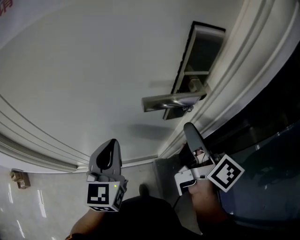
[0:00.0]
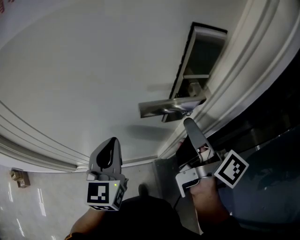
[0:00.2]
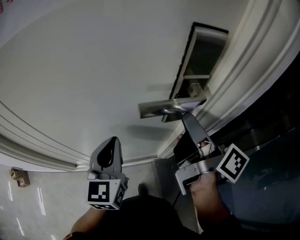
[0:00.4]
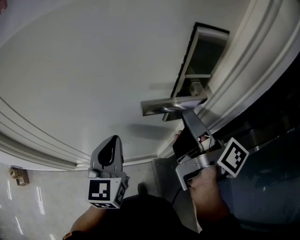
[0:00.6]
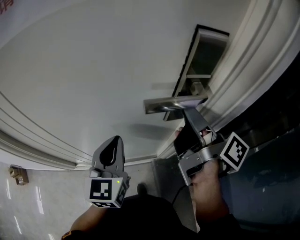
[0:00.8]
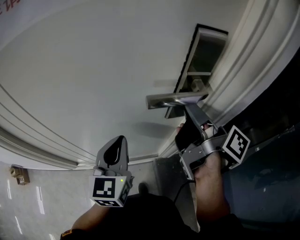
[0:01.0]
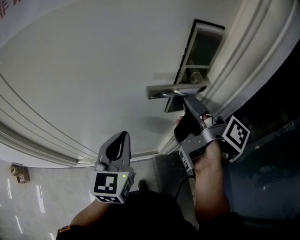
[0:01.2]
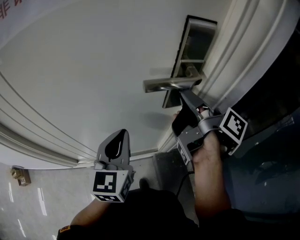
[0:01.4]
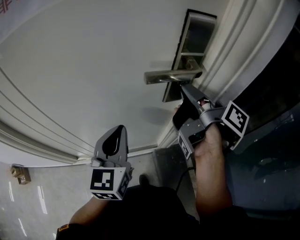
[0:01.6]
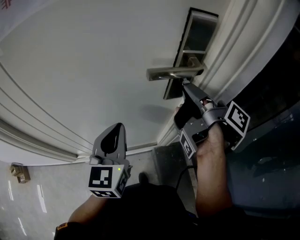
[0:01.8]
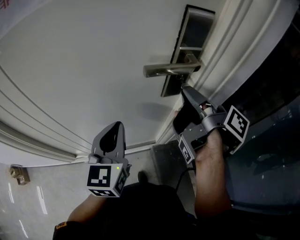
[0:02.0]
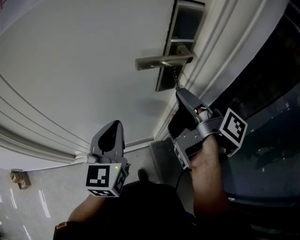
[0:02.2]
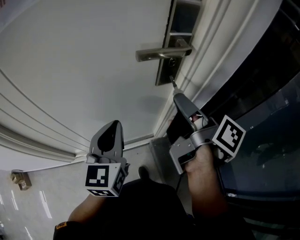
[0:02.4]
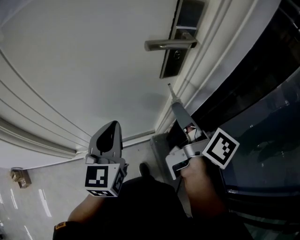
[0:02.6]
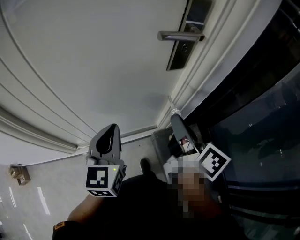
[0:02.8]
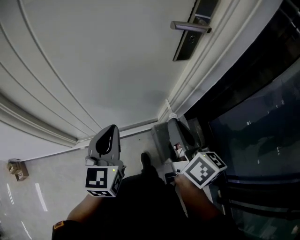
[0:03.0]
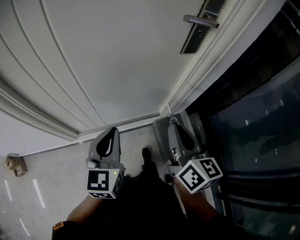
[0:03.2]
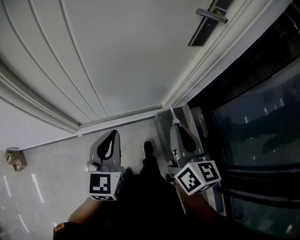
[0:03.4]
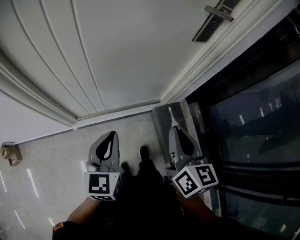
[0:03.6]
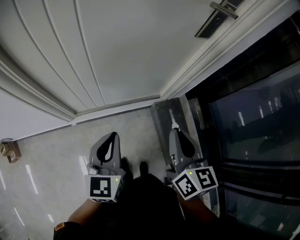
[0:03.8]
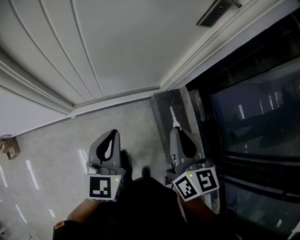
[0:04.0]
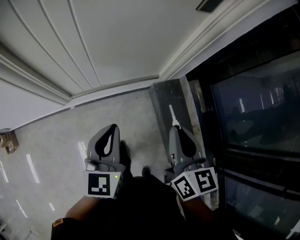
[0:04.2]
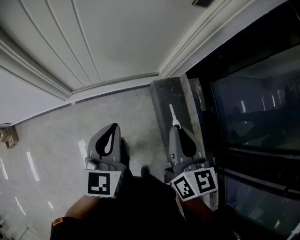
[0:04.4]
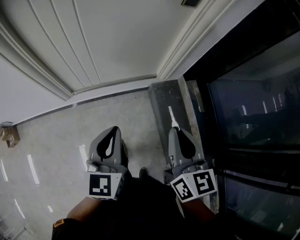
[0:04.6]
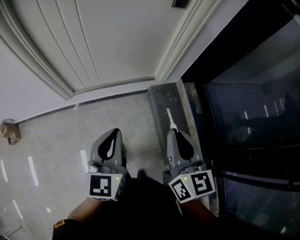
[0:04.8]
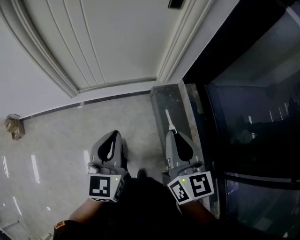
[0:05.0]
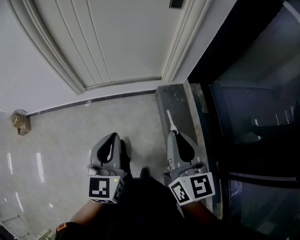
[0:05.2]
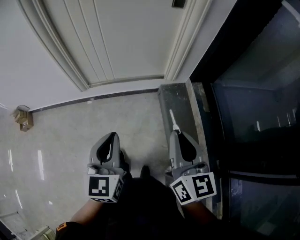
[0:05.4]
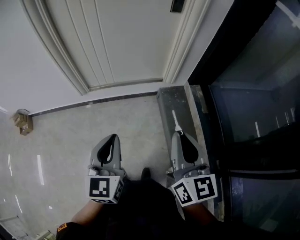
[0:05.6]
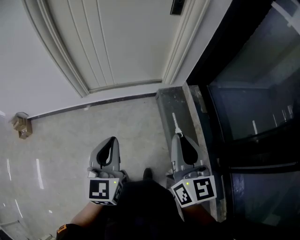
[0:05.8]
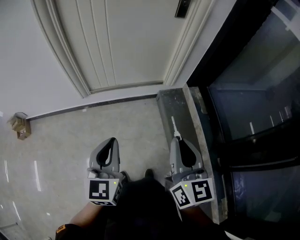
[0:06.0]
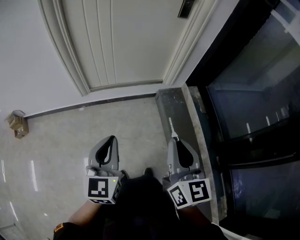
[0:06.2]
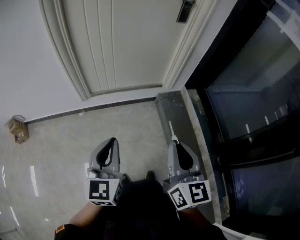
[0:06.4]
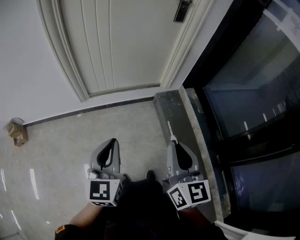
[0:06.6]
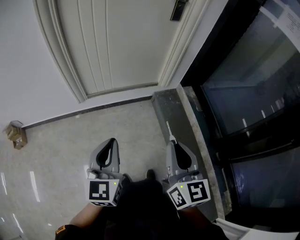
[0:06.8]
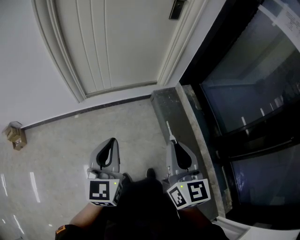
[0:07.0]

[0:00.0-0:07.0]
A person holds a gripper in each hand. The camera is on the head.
0:00.0 to 0:01.4: The right gripper rotates about 30 degrees.
0:01.4 to 0:02.8: The right gripper shifts some 20 cm backward and downward, and changes its angle by roughly 30 degrees; the left gripper goes roughly 10 cm backward and to the left.
0:02.8 to 0:04.2: The grippers both shift backward and downward by about 25 cm. The right gripper turns by some 40 degrees.
0:04.2 to 0:05.6: The two grippers go approximately 30 cm backward.
0:05.6 to 0:07.0: The left gripper heads to the left, covering some 10 cm; the right gripper moves to the left and backward, about 15 cm.

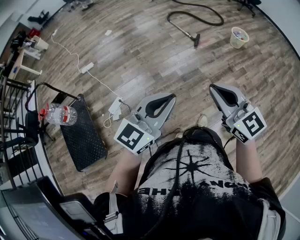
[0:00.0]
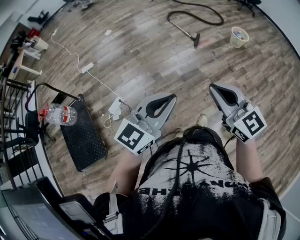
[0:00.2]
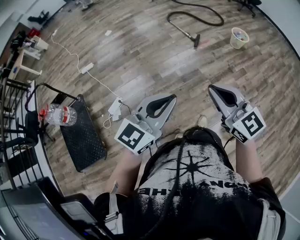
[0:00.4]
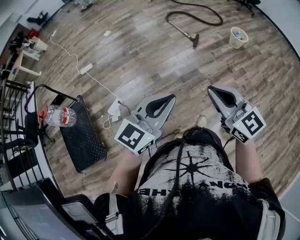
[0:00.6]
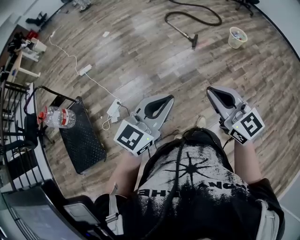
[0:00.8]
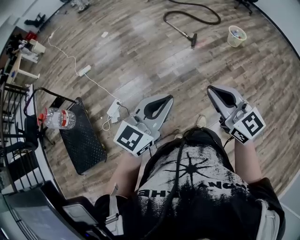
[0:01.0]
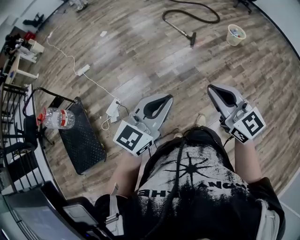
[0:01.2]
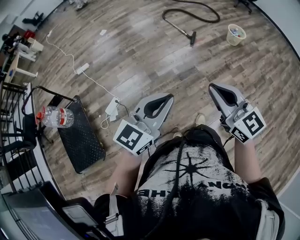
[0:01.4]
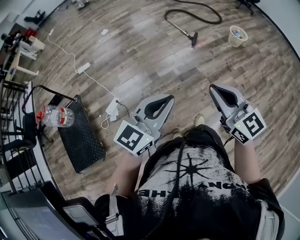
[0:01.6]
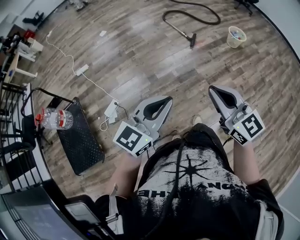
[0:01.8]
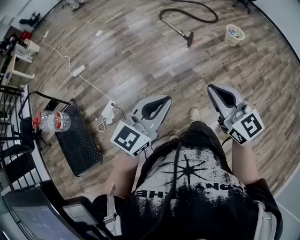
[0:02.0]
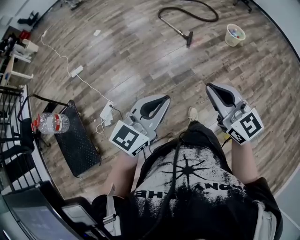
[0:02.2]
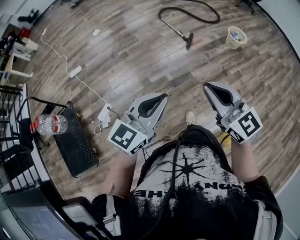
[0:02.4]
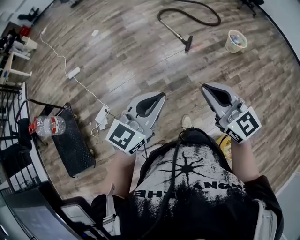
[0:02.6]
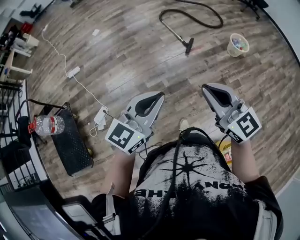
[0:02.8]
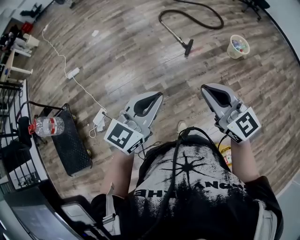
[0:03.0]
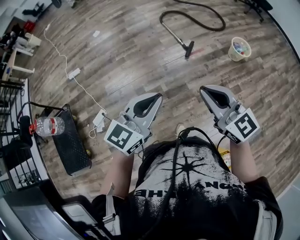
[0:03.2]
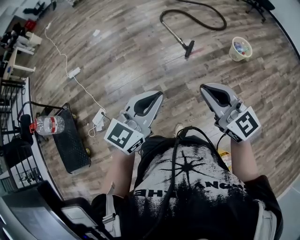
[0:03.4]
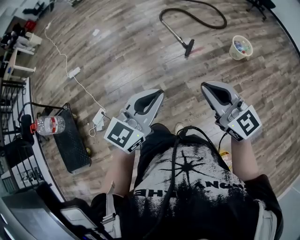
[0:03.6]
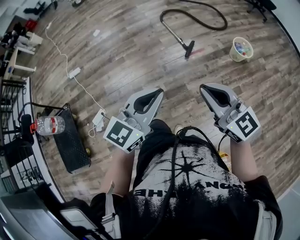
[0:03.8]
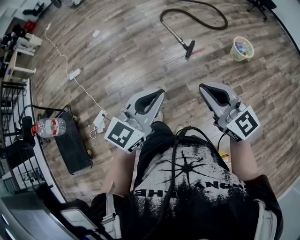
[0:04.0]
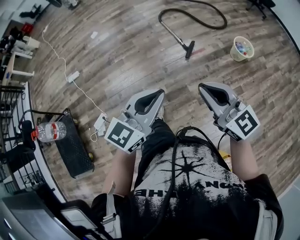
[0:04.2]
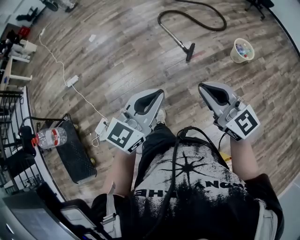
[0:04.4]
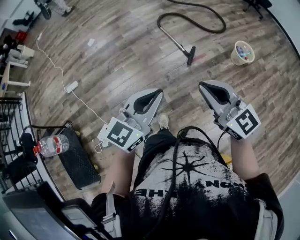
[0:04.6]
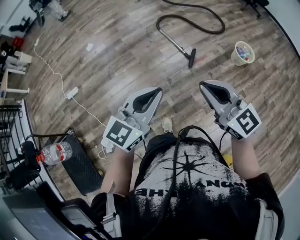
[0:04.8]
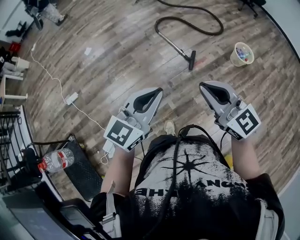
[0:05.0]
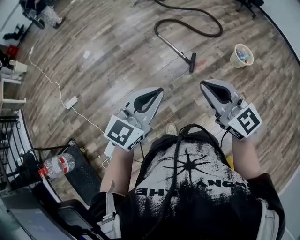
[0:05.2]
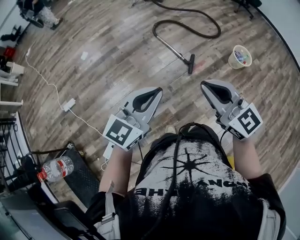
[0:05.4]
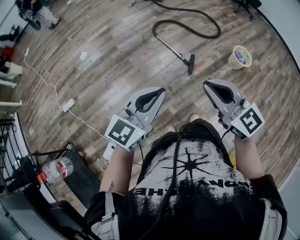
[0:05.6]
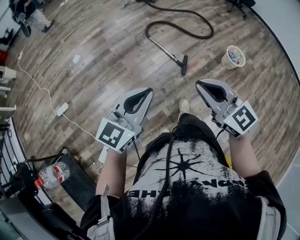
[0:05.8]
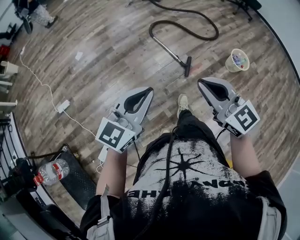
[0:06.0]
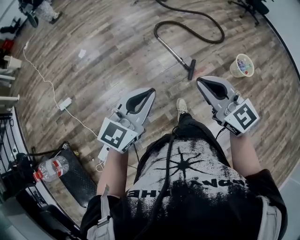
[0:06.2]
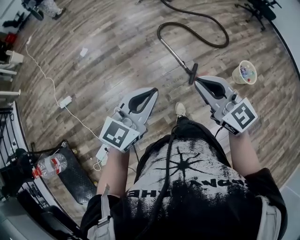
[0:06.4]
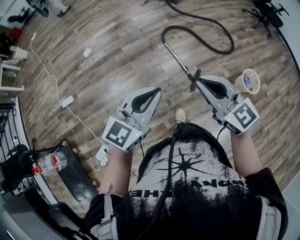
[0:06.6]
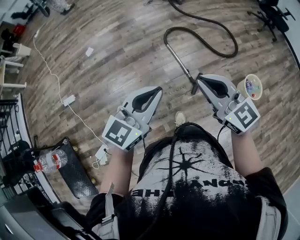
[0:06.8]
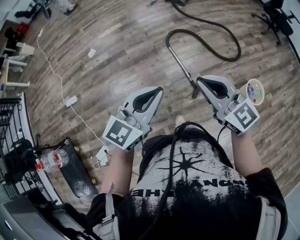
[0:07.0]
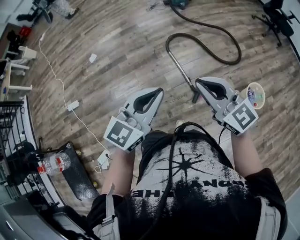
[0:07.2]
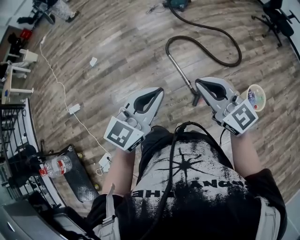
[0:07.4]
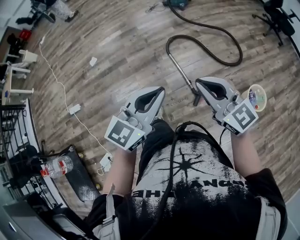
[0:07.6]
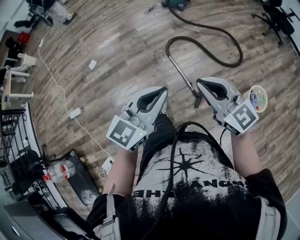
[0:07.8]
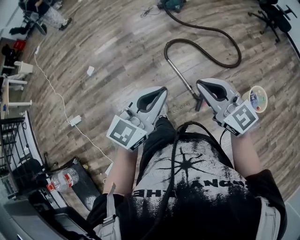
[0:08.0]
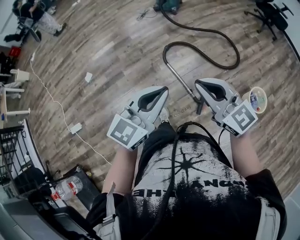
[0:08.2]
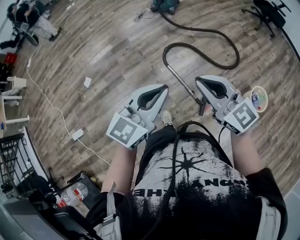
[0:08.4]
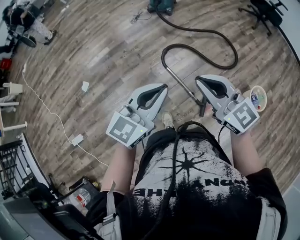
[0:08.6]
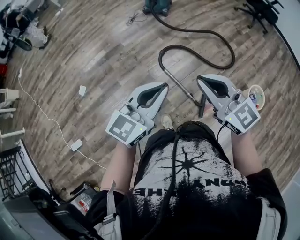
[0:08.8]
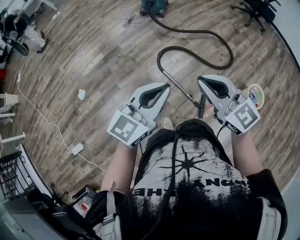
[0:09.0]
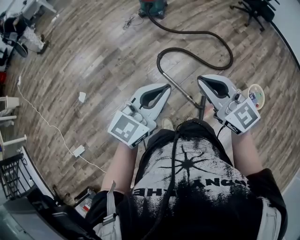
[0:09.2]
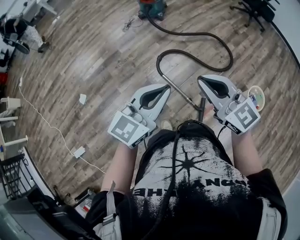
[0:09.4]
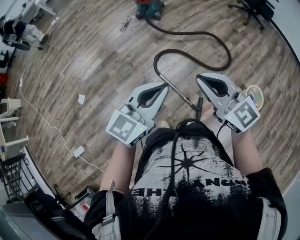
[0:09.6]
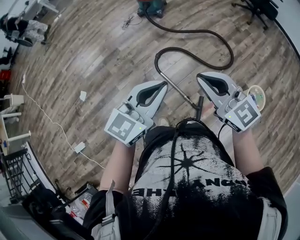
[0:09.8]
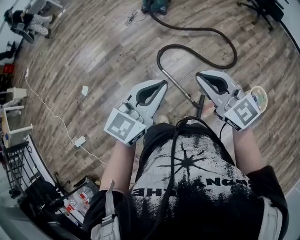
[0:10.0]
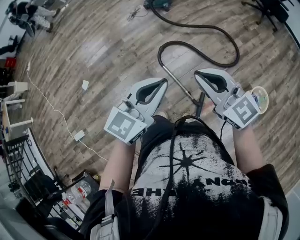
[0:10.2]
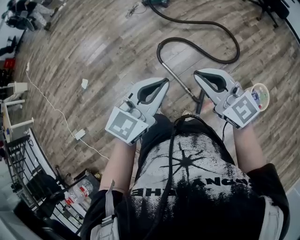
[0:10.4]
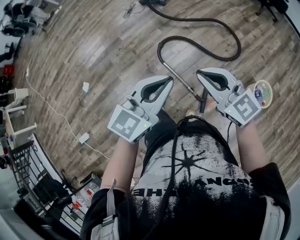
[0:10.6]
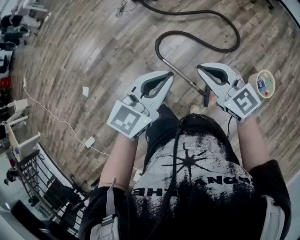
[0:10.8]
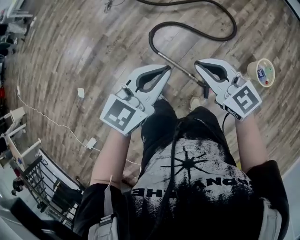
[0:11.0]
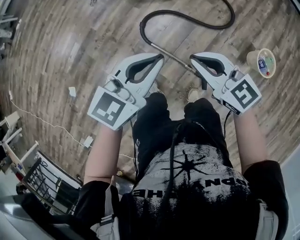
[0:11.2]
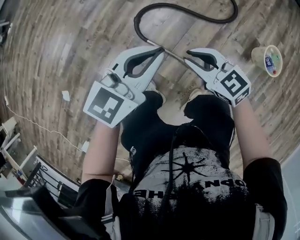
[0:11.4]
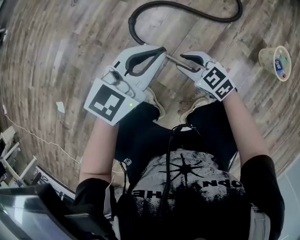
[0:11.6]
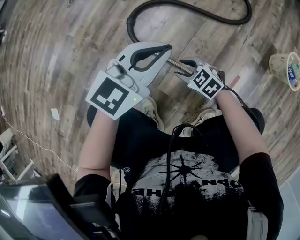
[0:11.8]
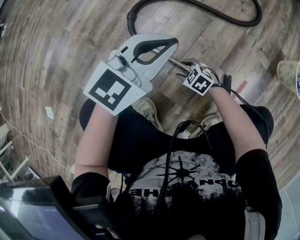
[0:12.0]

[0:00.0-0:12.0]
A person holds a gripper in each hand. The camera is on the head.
0:00.0 to 0:01.6: There are only small adjustments of the grippers.
0:01.6 to 0:03.0: The two grippers go roughly 30 cm forward and to the right.
0:03.0 to 0:04.4: The two grippers go about 15 cm forward.
0:04.4 to 0:06.0: Both grippers travel together forward and to the left, roughly 25 cm.
0:06.0 to 0:07.6: Both grippers move forward and to the right, roughly 35 cm.
0:07.6 to 0:09.0: The grippers both shift forward and to the left by some 30 cm.
0:09.0 to 0:10.4: The grippers both shift to the right by roughly 15 cm.
0:10.4 to 0:12.0: The left gripper shifts approximately 50 cm downward, and changes its angle by about 30 degrees. Meanwhile the right gripper travels downward by some 90 cm, points its fingers roughly 50 degrees further downward, and opens its fingers.

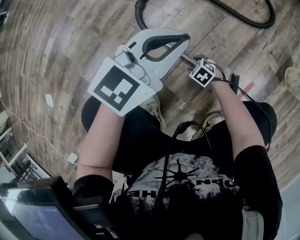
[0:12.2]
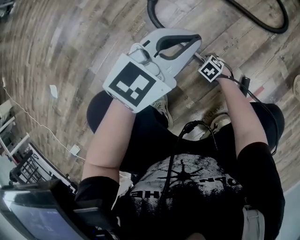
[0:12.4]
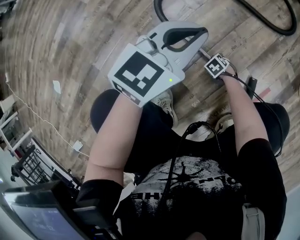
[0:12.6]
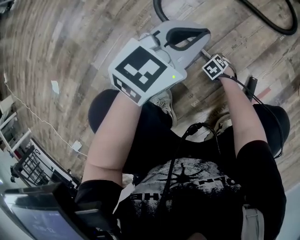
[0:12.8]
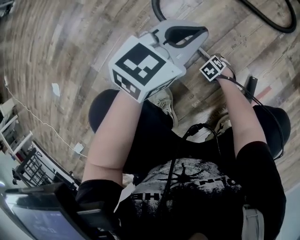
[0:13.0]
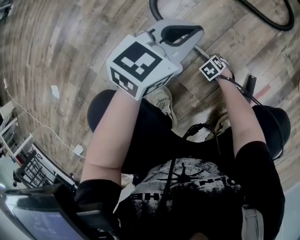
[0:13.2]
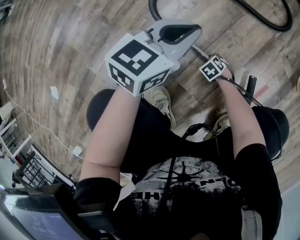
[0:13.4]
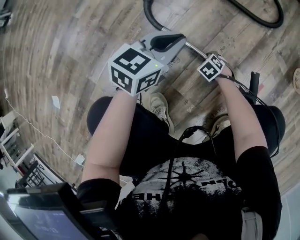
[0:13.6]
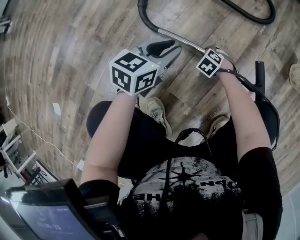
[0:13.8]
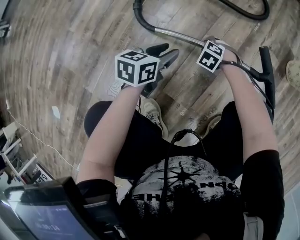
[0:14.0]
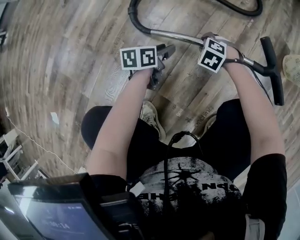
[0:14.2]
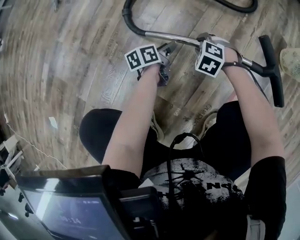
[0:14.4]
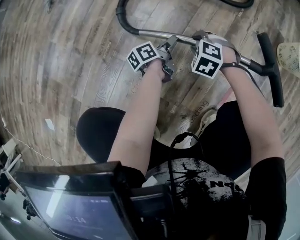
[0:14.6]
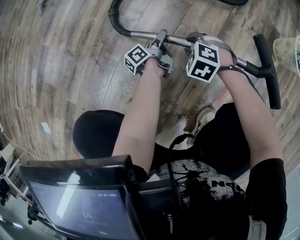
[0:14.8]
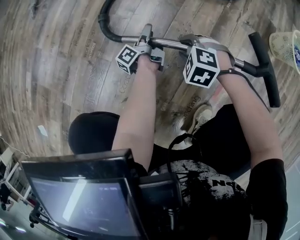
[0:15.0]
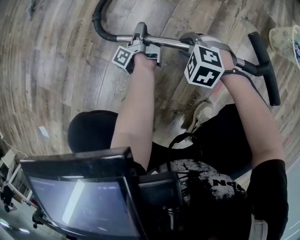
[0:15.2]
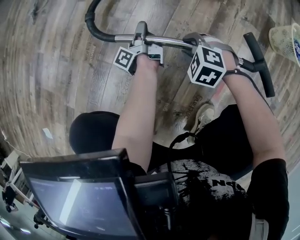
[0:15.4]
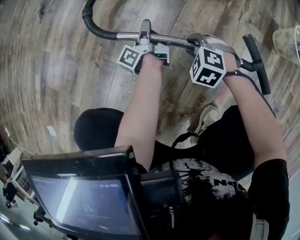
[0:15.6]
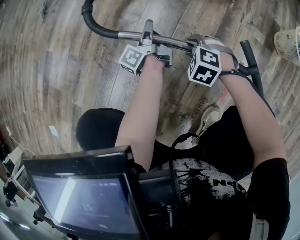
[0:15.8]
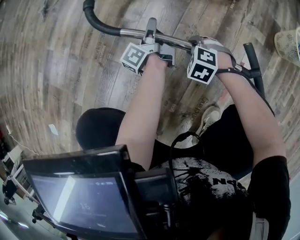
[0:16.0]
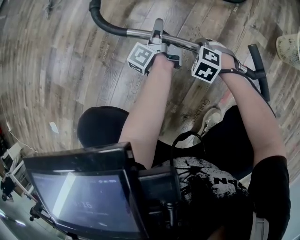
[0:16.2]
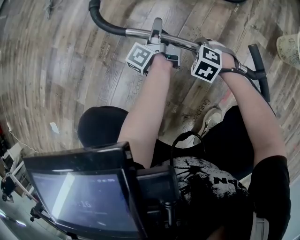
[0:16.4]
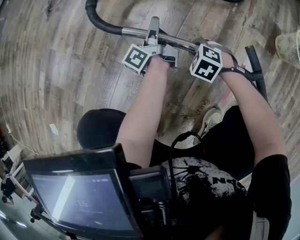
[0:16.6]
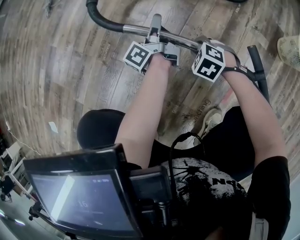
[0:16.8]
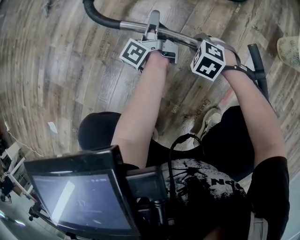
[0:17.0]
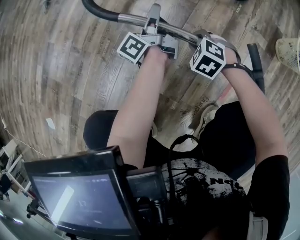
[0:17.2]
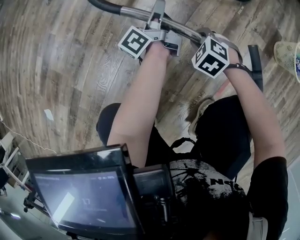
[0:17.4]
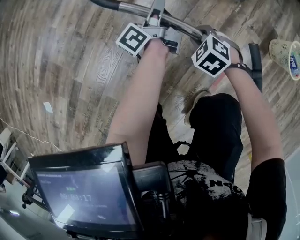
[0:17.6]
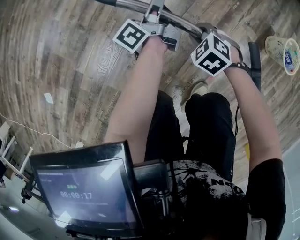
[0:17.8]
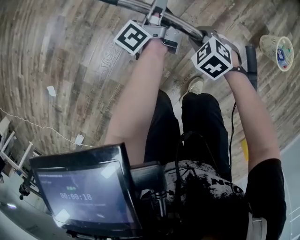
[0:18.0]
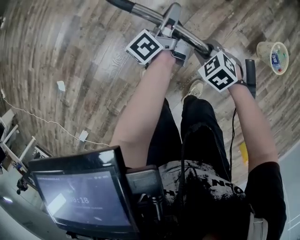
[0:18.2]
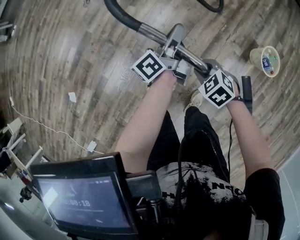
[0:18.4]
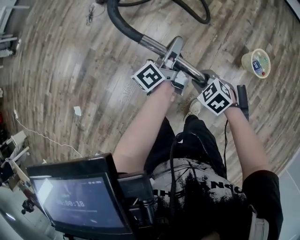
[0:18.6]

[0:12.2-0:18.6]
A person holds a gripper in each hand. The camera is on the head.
0:12.2 to 0:13.8: The right gripper goes downward and returns, roughly 10 cm each way; the left gripper shifts approximately 15 cm downward, turns by about 30 degrees, and opens its fingers.
0:13.8 to 0:15.4: The right gripper shifts approximately 10 cm upward. Meanwhile the left gripper travels downward by some 15 cm, rotates around the line of its fingers by approximately 80 degrees, counterclockwise from behind, and opens, then closes once more.
0:15.4 to 0:17.0: The left gripper heads upward, covering about 10 cm.
0:17.0 to 0:18.6: The grippers both shift upward by roughly 50 cm.
